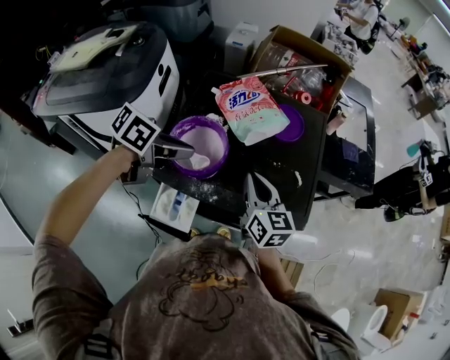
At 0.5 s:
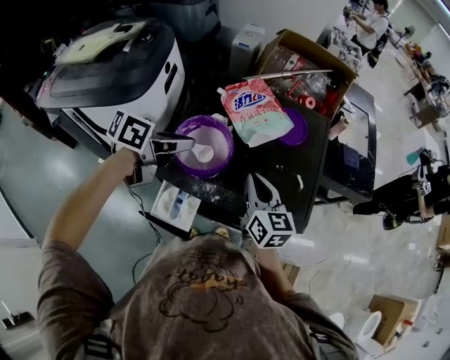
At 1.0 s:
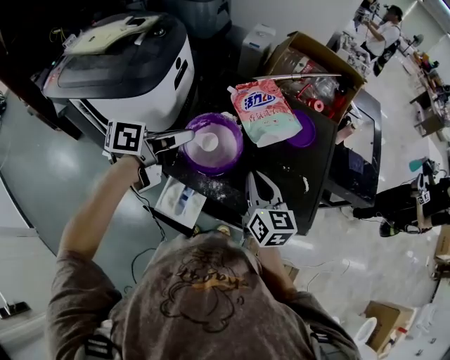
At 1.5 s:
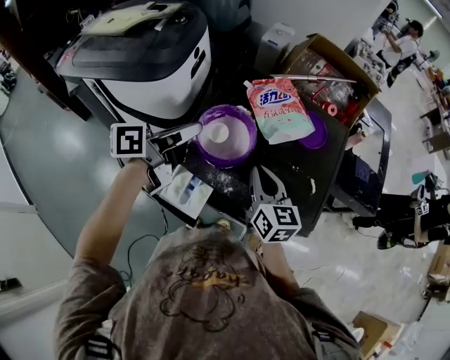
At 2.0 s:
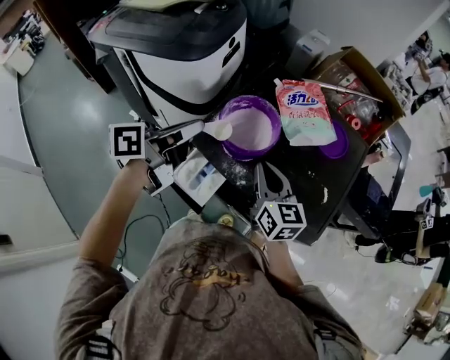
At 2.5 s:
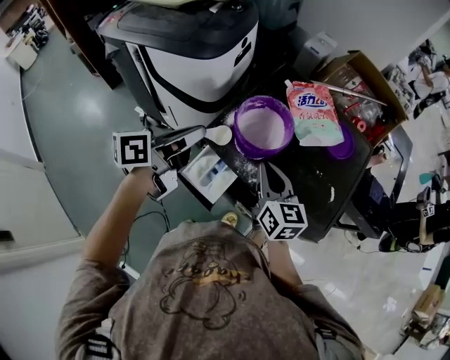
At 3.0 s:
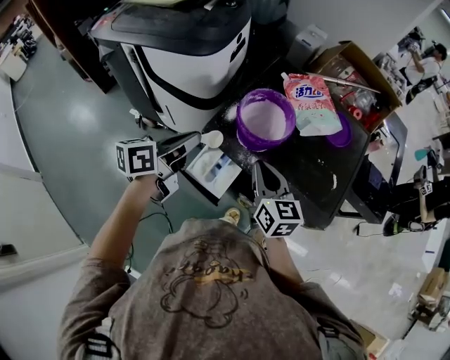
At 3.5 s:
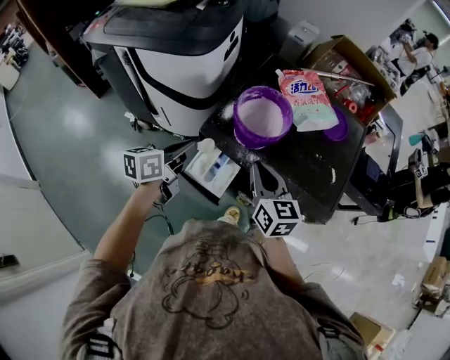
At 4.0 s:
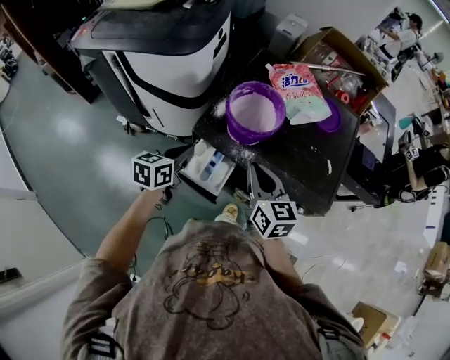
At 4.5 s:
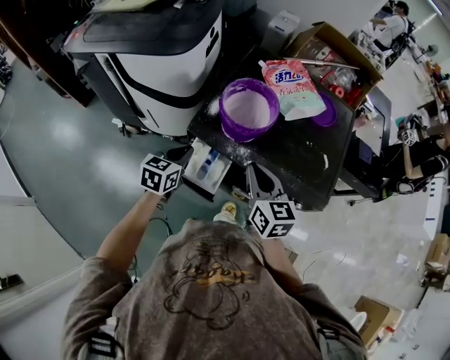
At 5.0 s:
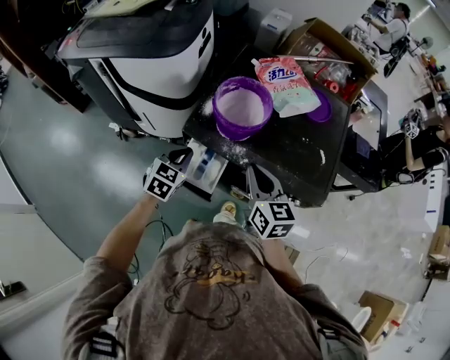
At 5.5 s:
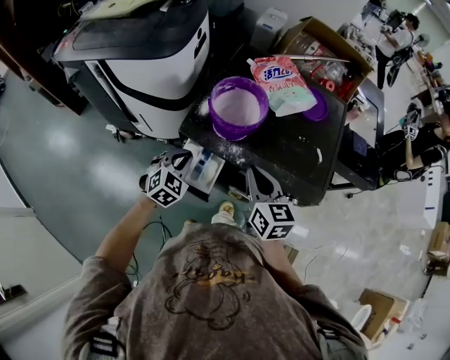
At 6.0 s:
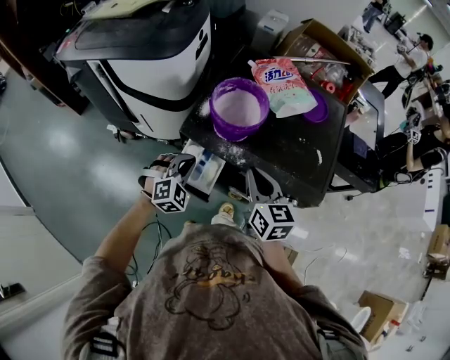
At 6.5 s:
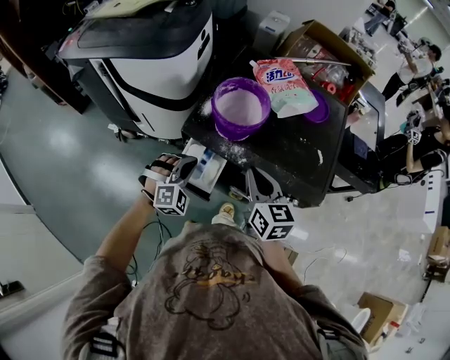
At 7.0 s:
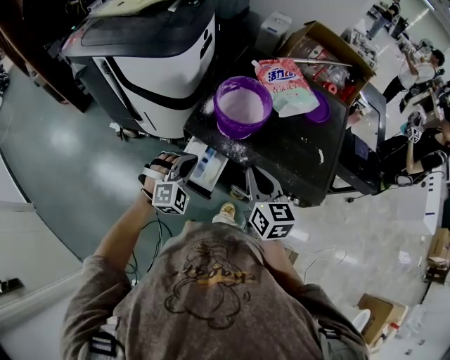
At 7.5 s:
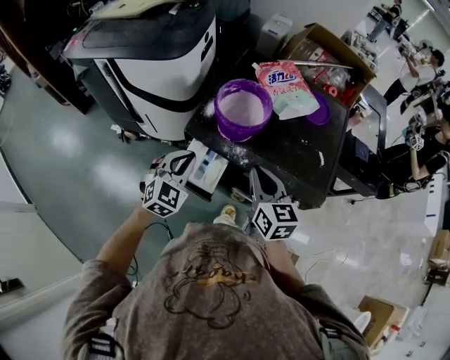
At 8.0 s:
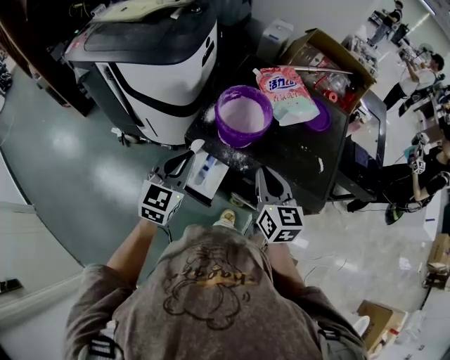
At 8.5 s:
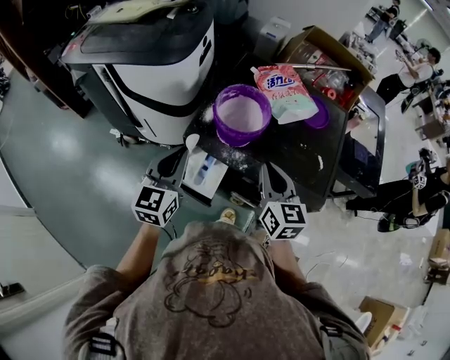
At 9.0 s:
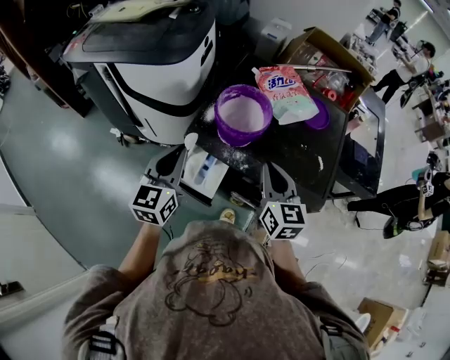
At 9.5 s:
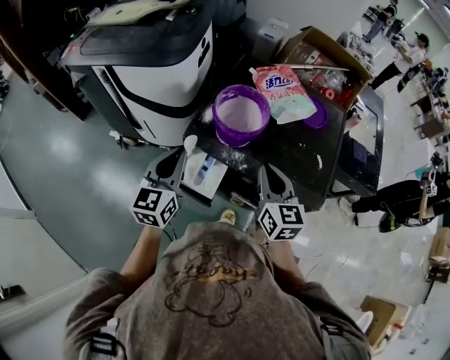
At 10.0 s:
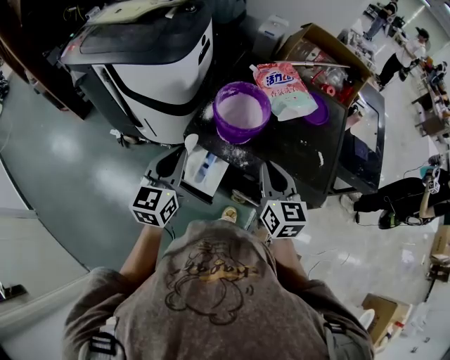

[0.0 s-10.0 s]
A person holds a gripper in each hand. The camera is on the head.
0.0 to 2.0 s: The left gripper changes place by some 15 cm, and swivels roughly 60 degrees, while the right gripper ends up some 10 cm from where it was, and turns by roughly 20 degrees.
2.0 to 4.0 s: The right gripper goes about 5 cm backward. Meanwhile the left gripper shifts about 15 cm downward, and swivels some 30 degrees.
4.0 to 6.0 s: The left gripper heads to the right and downward, covering some 10 cm, and twists about 70 degrees clockwise, seen from behind.
6.0 to 8.0 s: The left gripper is displaced upward by approximately 15 cm, and rolls counterclockwise, seen from behind, by about 40 degrees.
8.0 to 10.0 s: There are only small adjustments of the grippers.

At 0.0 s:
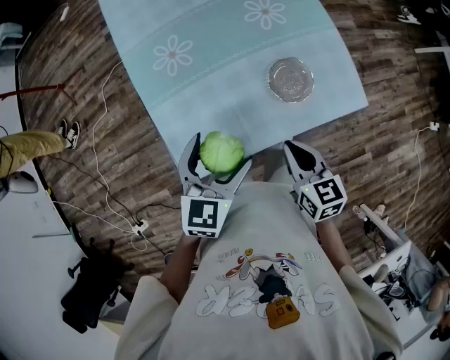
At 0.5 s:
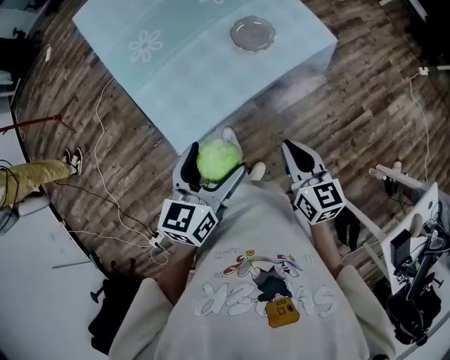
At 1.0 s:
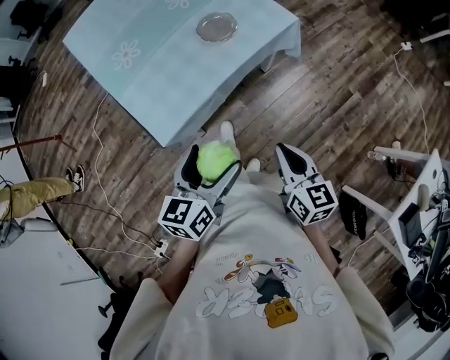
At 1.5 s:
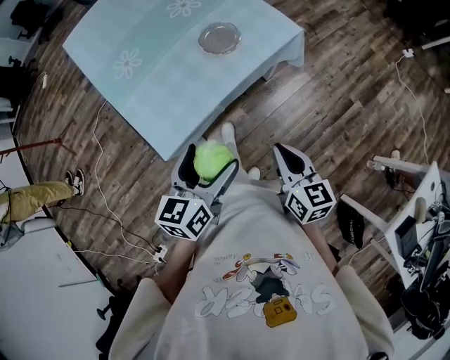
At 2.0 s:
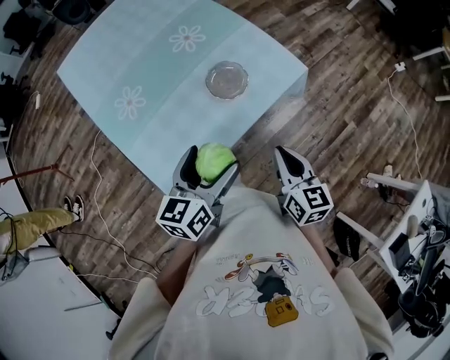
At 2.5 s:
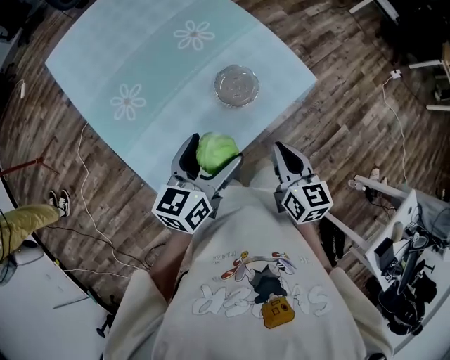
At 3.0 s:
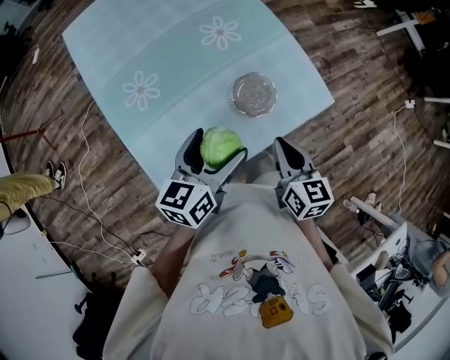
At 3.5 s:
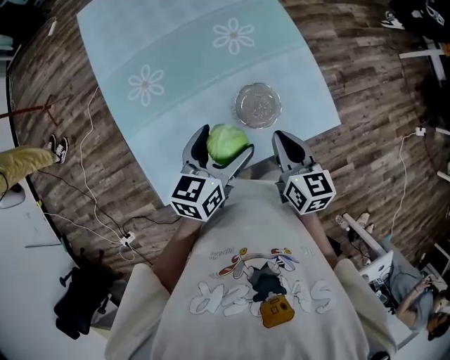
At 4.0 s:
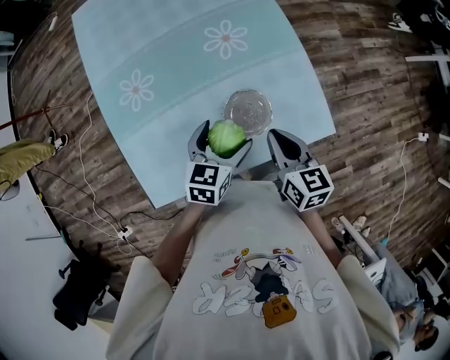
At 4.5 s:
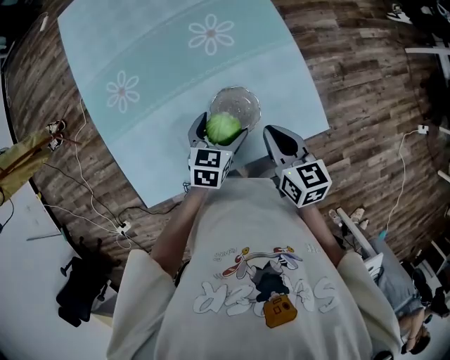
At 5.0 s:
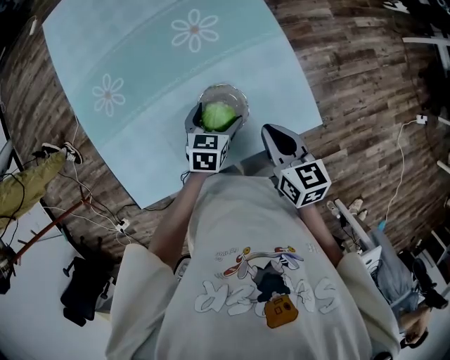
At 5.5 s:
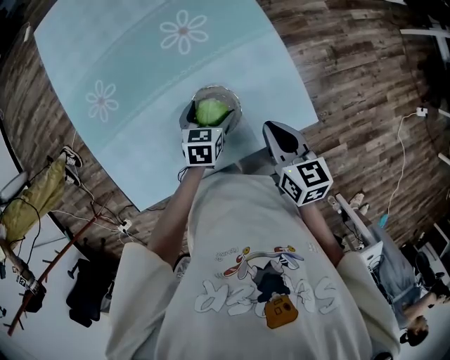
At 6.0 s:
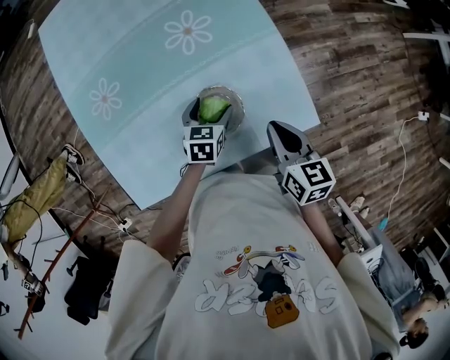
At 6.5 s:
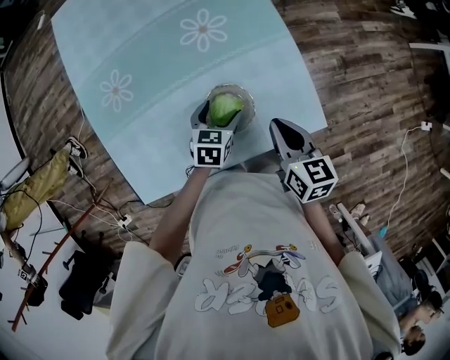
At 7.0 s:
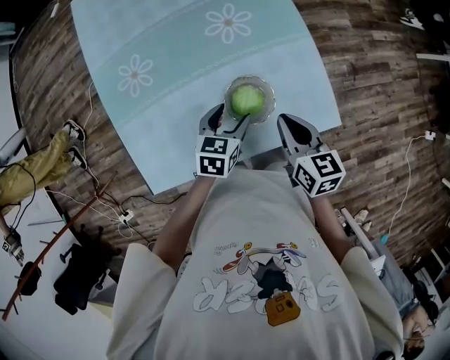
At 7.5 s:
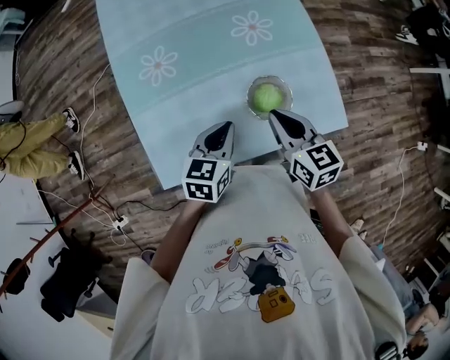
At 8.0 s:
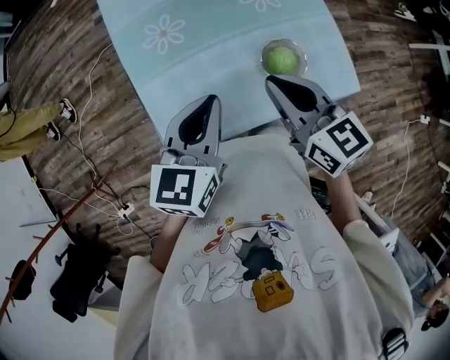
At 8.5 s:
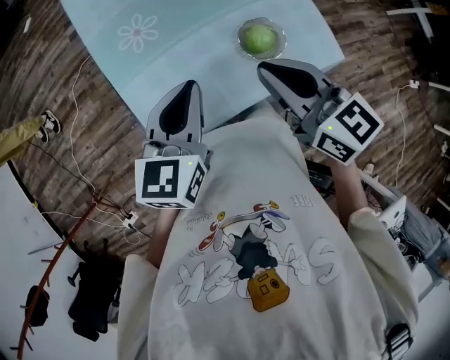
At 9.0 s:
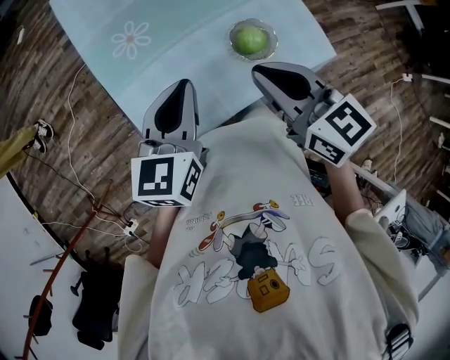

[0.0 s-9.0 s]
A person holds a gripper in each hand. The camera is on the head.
0.0 to 2.0 s: Both grippers travel together to the right, about 10 cm. The right gripper moves roughly 30 cm backward and comes back, and turns by roughly 30 degrees. Meanwhile the left gripper reaches approximately 30 cm backward, then returns, and changes its angle by roughly 30 degrees.
2.0 to 4.5 s: The right gripper goes some 25 cm forward, and turns by roughly 30 degrees, while the left gripper moves forward and downward, roughly 30 cm, and swivels some 30 degrees.
4.5 to 7.0 s: The left gripper closes up.
7.0 to 9.0 s: The right gripper heads to the left, upward and backward, covering some 25 cm; the left gripper is displaced upward and to the left by about 30 cm, rotates approximately 30 degrees, and closes its fingers.

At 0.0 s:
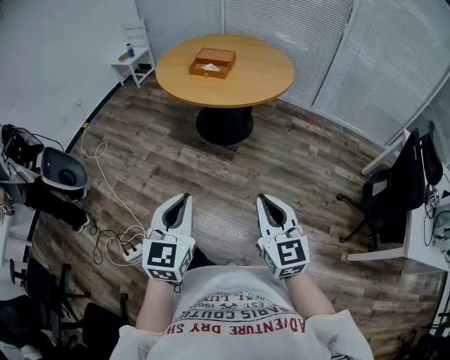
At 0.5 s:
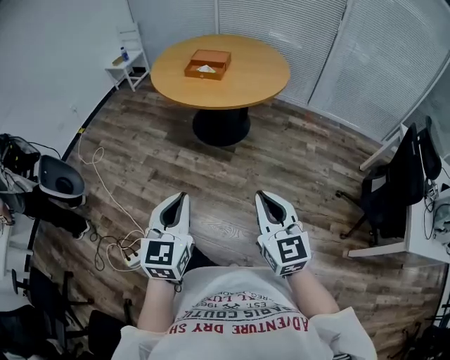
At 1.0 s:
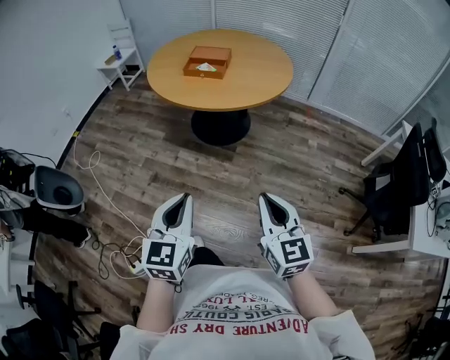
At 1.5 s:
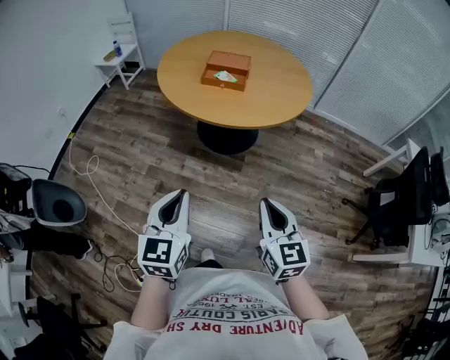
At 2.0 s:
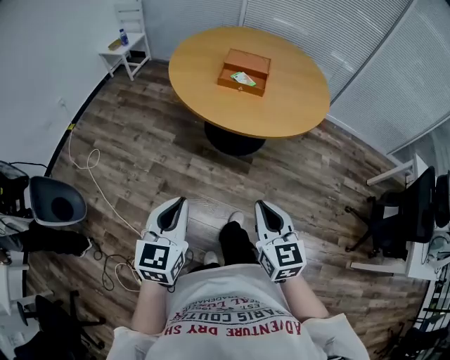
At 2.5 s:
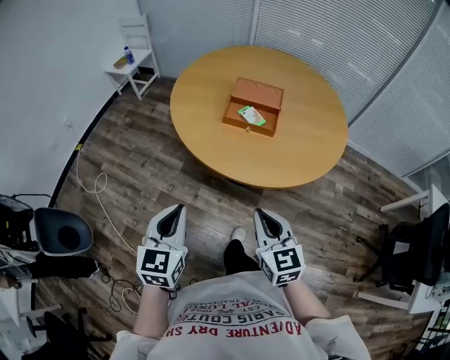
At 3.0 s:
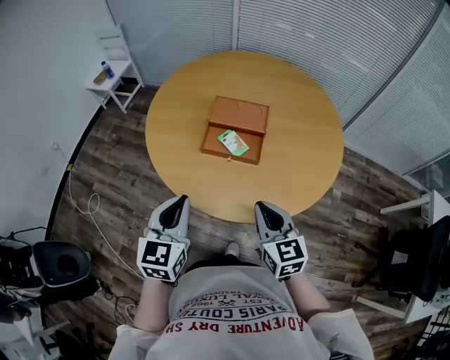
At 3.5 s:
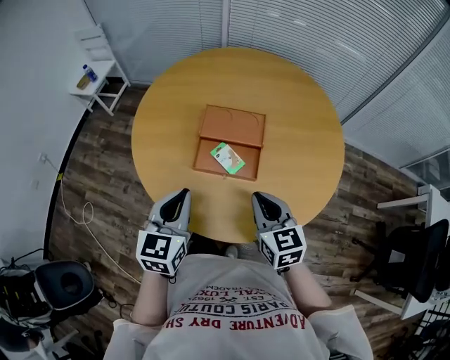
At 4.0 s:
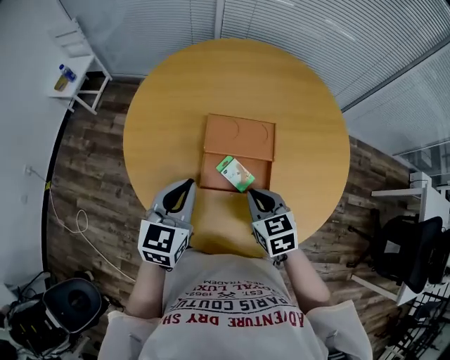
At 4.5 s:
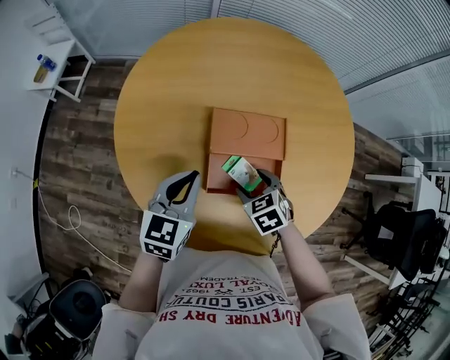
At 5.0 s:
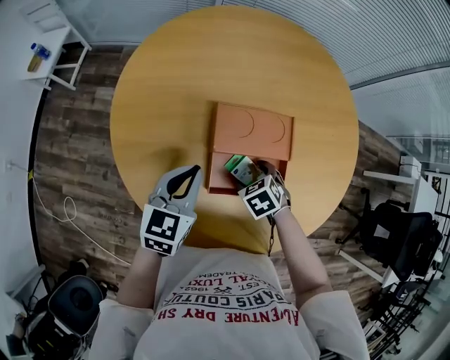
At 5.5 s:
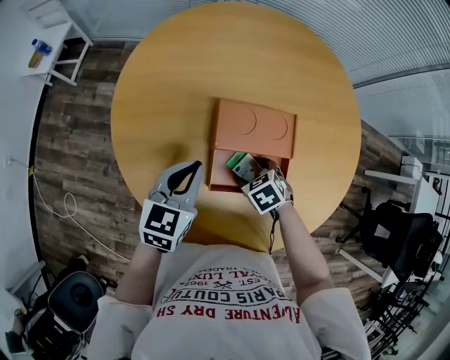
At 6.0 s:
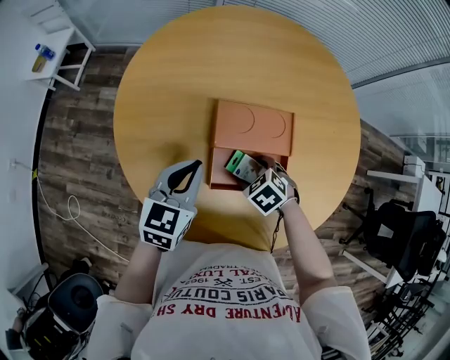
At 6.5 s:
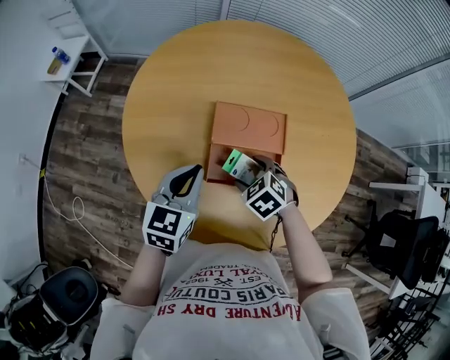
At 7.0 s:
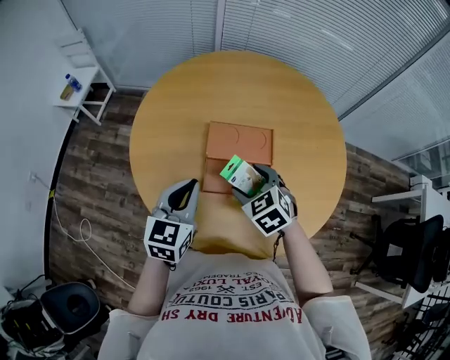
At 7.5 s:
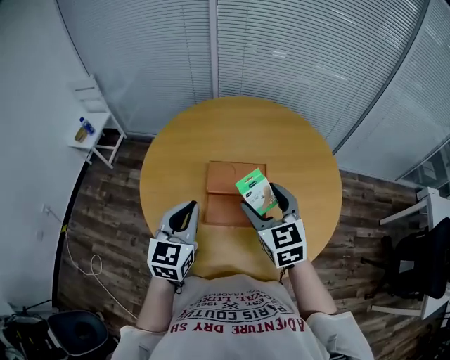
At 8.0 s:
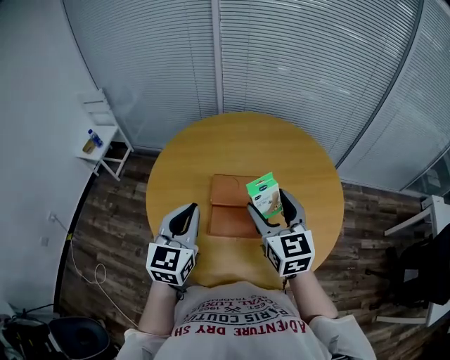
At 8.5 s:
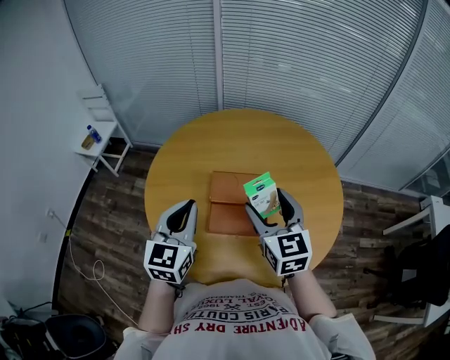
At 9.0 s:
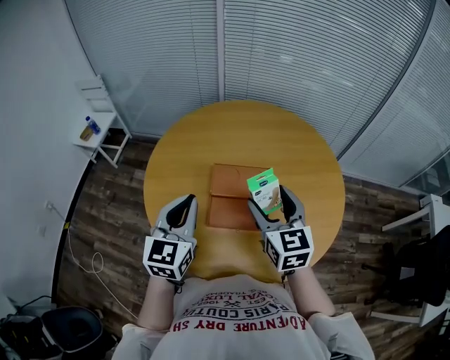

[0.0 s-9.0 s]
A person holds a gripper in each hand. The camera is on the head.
0.0 to 2.0 s: The two grippers go some 35 cm forward and to the left.
2.0 to 4.5 s: The pair of grippers is taken forward, roughly 70 cm. The right gripper tips its fingers downward by approximately 40 degrees, and opens its fingers, while the left gripper changes its angle by roughly 20 degrees.
4.5 to 7.0 s: The right gripper is displaced upward by some 10 cm, while the left gripper is displaced backward and upward by roughly 10 cm.
7.0 to 9.0 s: The left gripper is displaced upward by approximately 10 cm; the right gripper is displaced upward by approximately 15 cm, and points its fingers some 30 degrees further upward.
